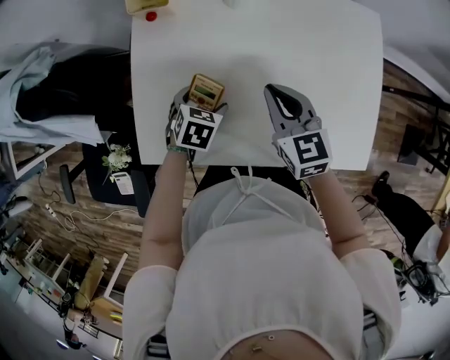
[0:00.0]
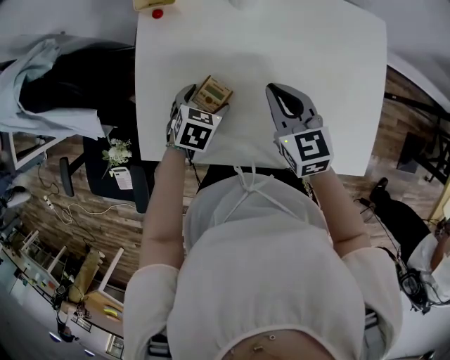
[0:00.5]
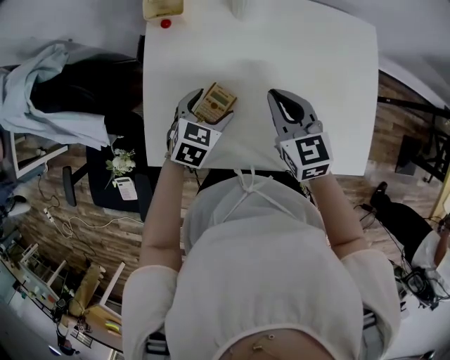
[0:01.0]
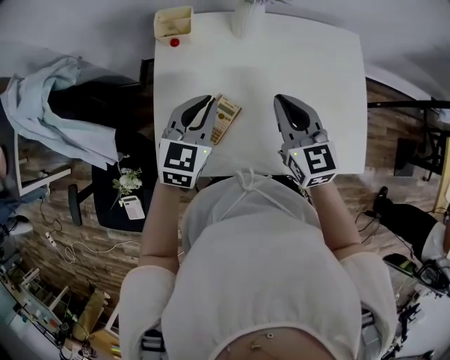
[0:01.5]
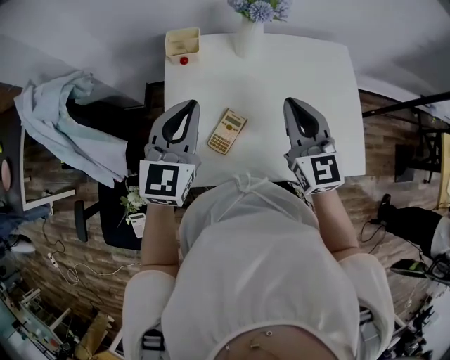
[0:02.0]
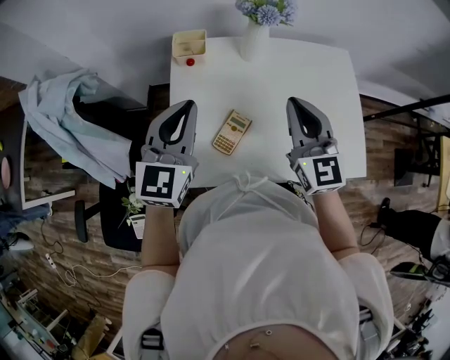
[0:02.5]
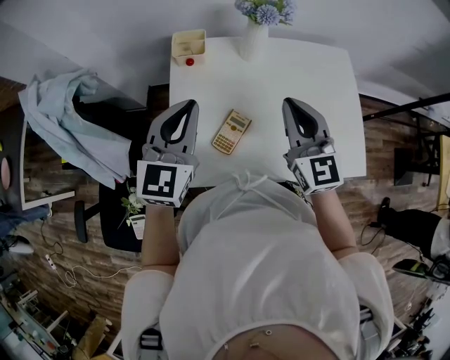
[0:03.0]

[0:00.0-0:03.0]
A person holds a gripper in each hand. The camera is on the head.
0:00.0 to 0:01.5: The left gripper travels upward by roughly 20 cm, tilts its fingers approximately 40 degrees upward, and closes its fingers, while the right gripper moves upward, about 10 cm.
0:01.5 to 0:03.0: The left gripper travels upward and to the left by roughly 15 cm, while the right gripper shifts approximately 10 cm upward.

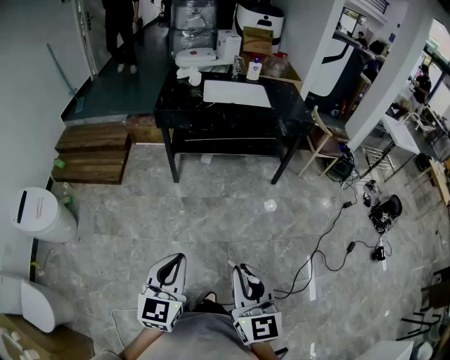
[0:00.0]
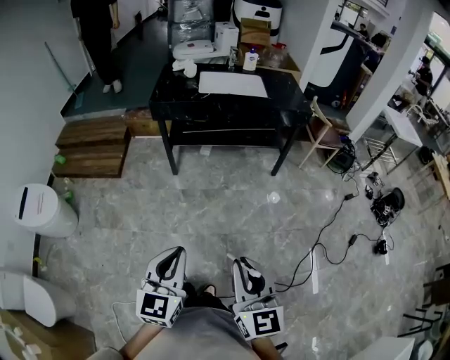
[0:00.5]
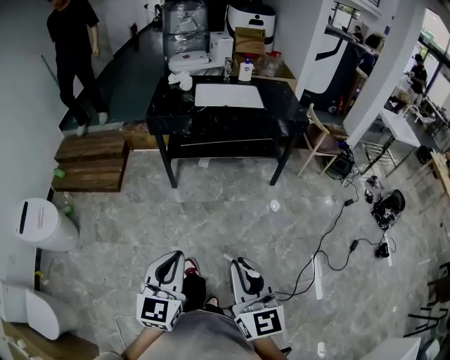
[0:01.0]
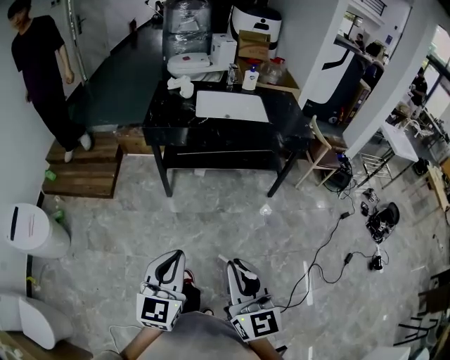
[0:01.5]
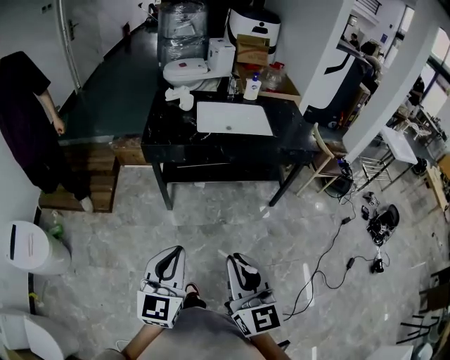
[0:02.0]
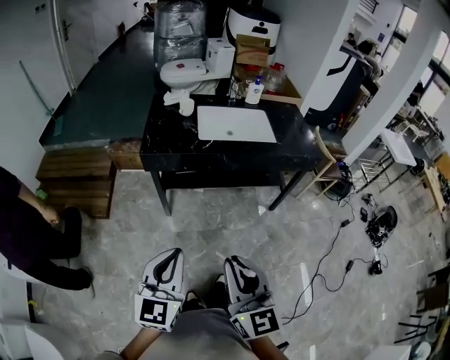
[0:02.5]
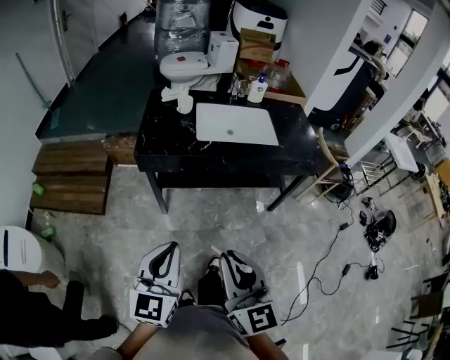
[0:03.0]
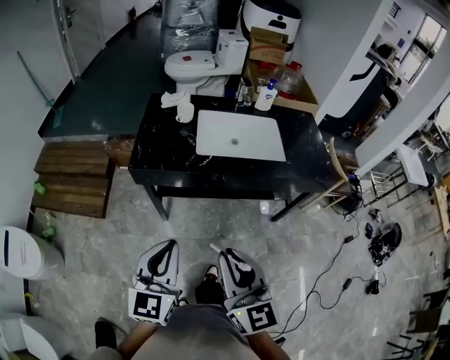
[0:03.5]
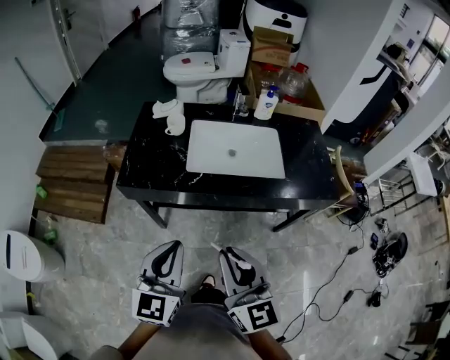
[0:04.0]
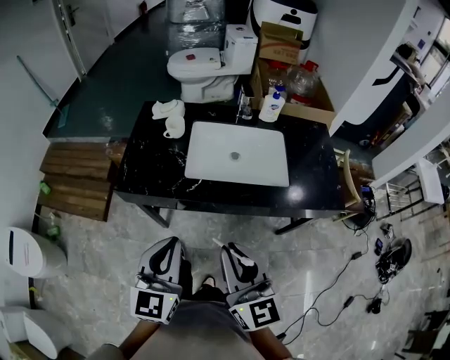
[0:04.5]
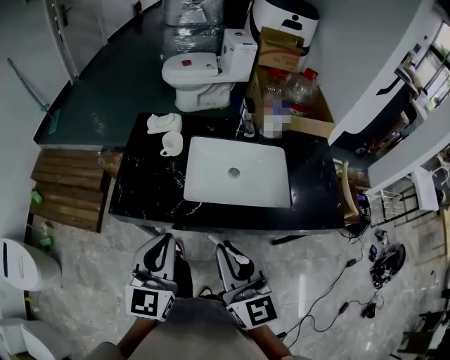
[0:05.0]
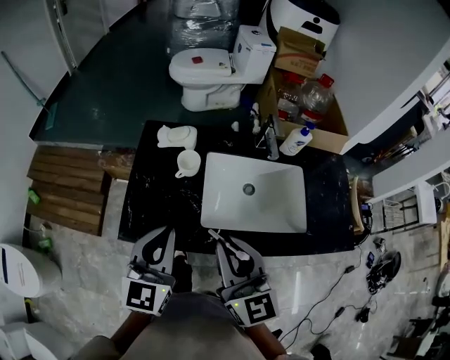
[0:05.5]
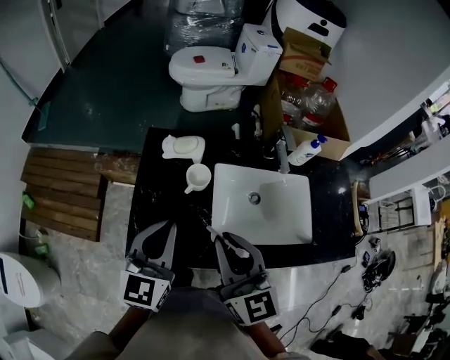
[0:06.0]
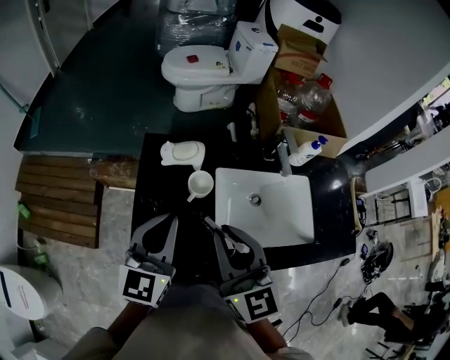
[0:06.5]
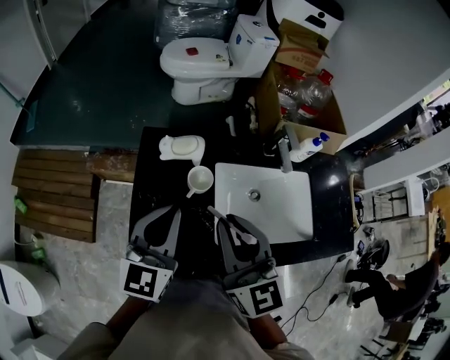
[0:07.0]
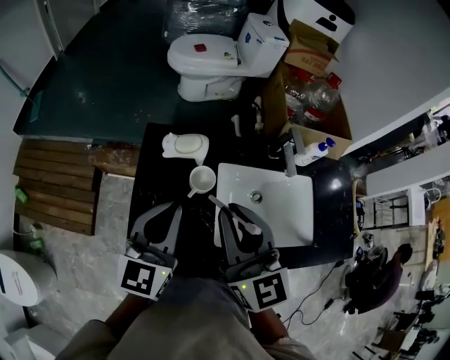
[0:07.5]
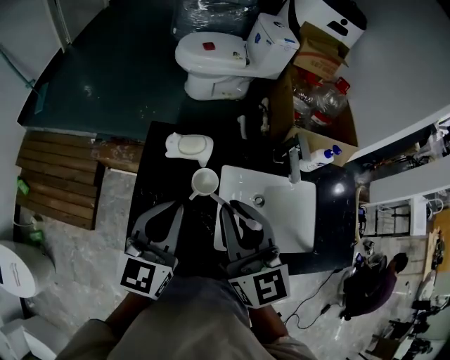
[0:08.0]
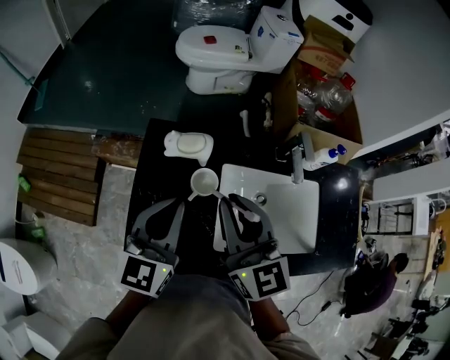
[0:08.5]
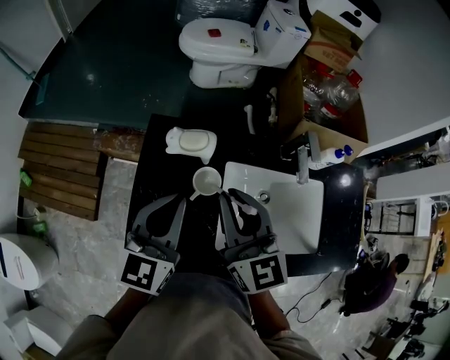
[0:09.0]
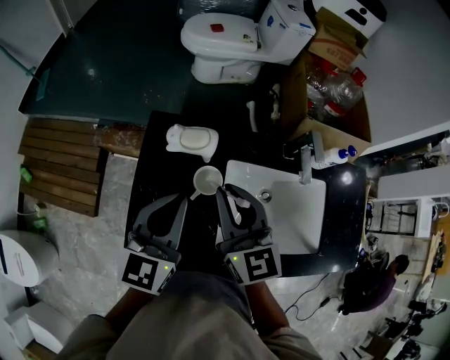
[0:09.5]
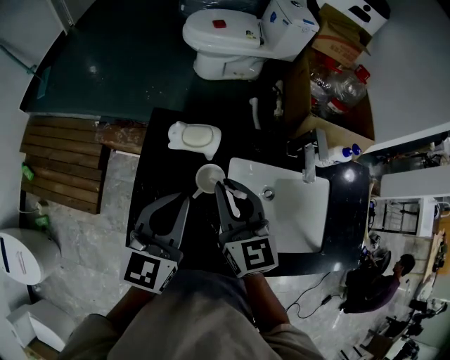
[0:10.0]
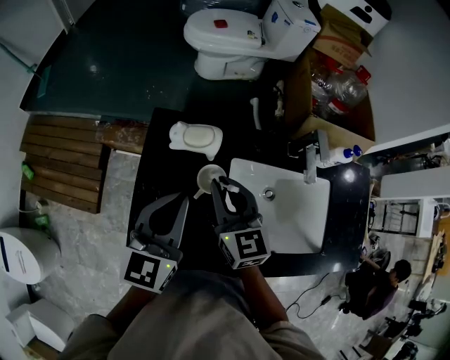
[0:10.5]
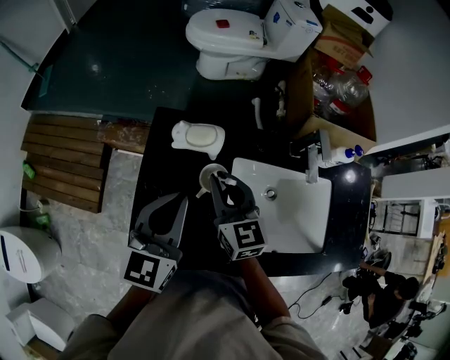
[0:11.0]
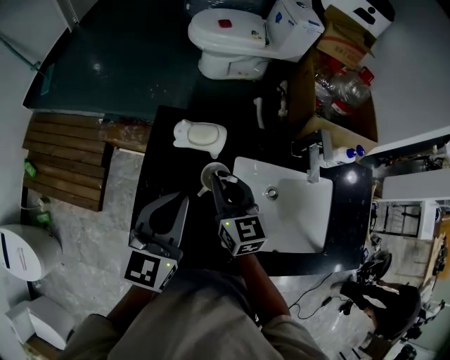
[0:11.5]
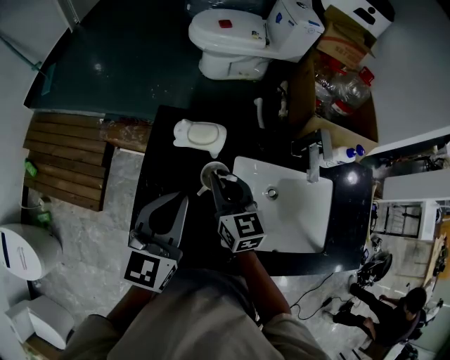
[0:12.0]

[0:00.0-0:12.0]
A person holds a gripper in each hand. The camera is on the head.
0:00.0 to 0:02.0: Both grippers travel together forward, about 25 cm.
0:02.0 to 0:04.0: The two grippers go roughly 30 cm forward.
0:04.0 to 0:06.0: Both grippers move forward, about 35 cm.
0:06.0 to 0:08.0: The two grippers go roughly 10 cm forward.
0:08.0 to 0:10.0: The right gripper heads downward and forward, covering some 10 cm.
0:10.0 to 0:12.0: The right gripper travels downward by some 10 cm.

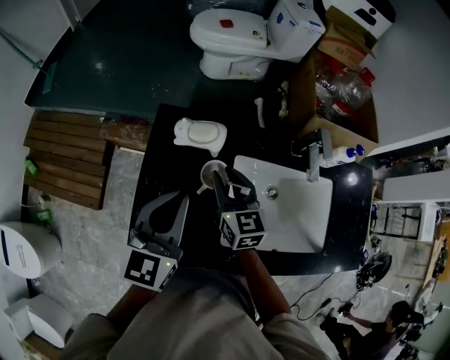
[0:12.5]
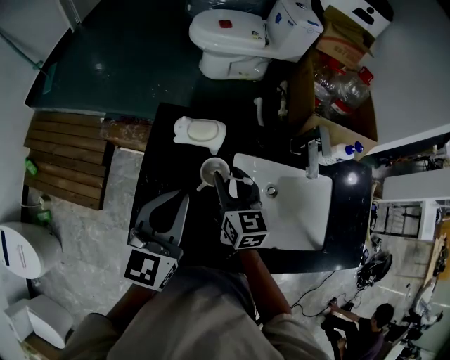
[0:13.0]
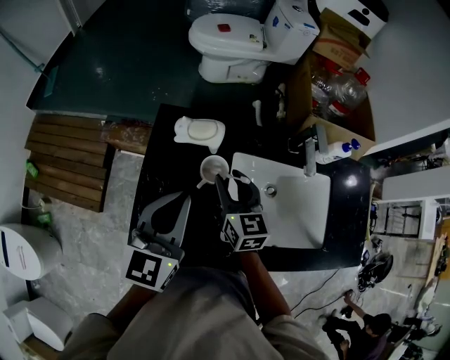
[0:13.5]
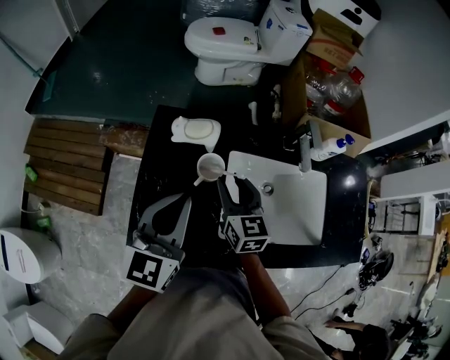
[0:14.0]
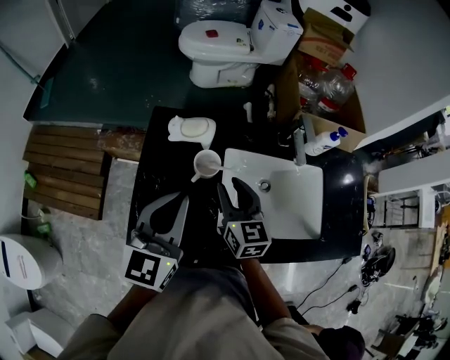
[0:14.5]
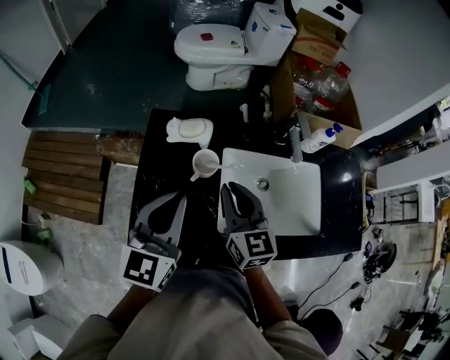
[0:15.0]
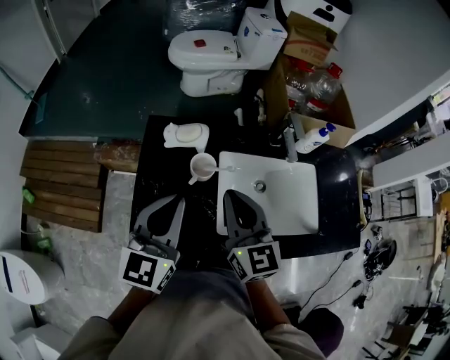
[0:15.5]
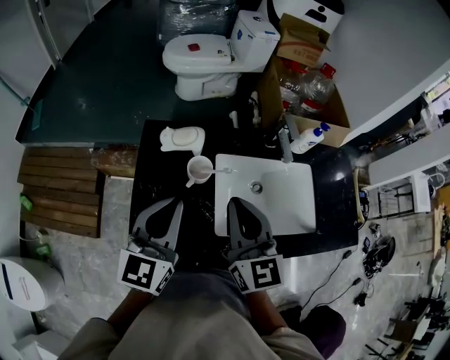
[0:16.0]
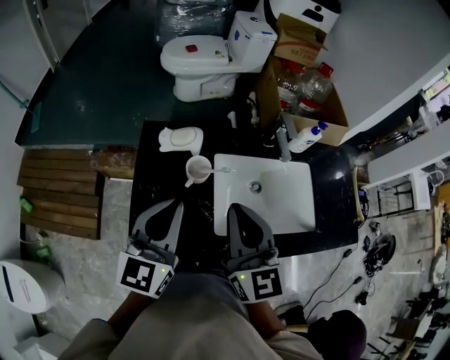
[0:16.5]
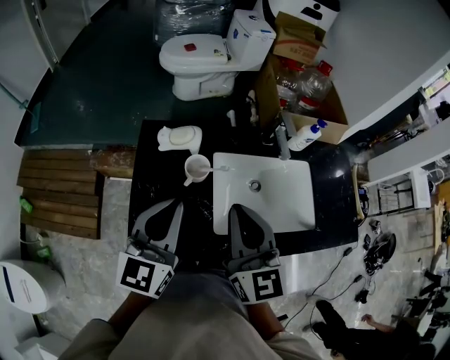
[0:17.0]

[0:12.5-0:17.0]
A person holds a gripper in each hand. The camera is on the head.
0:12.5 to 0:14.5: The left gripper moves approximately 5 cm; the right gripper moves backward, roughly 5 cm.
0:14.5 to 0:17.0: The right gripper moves upward and backward, some 15 cm, and closes up.

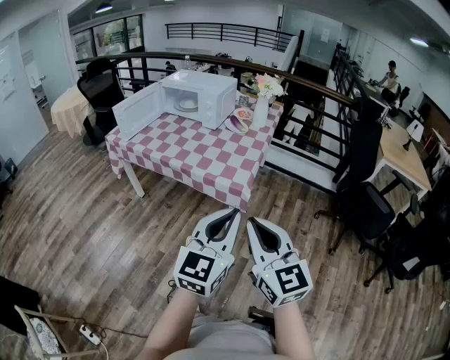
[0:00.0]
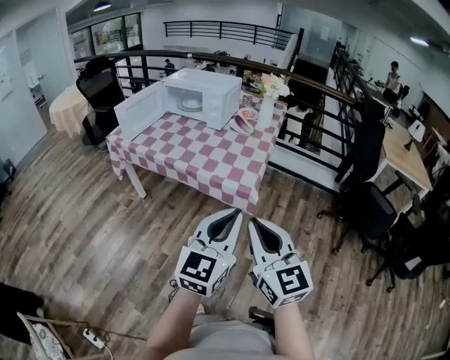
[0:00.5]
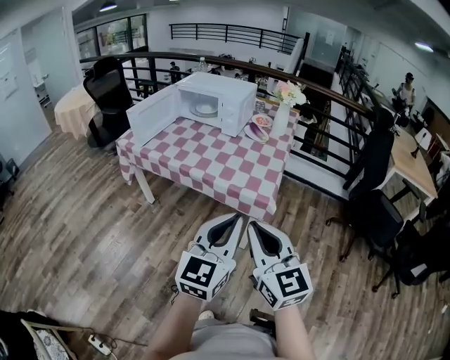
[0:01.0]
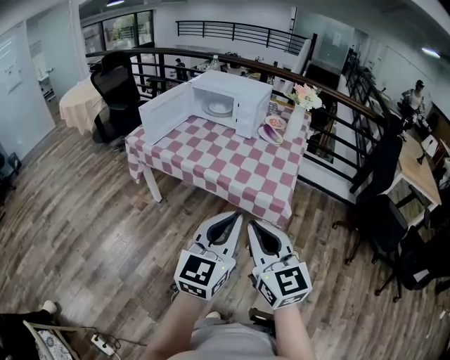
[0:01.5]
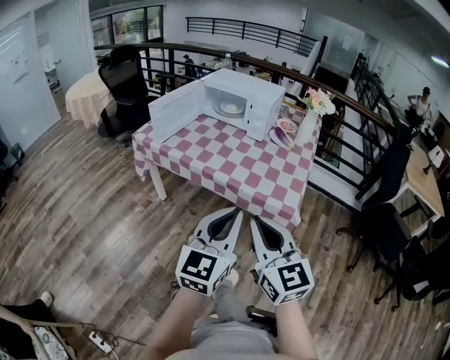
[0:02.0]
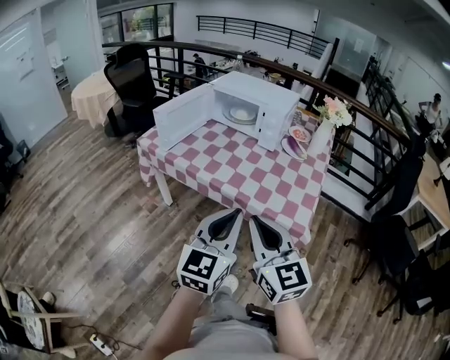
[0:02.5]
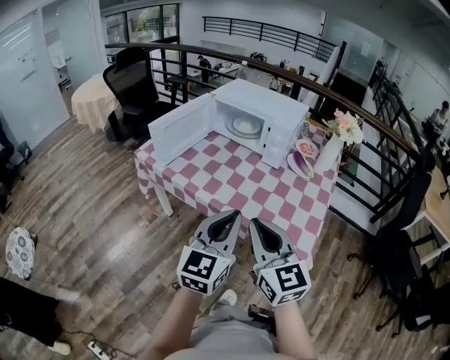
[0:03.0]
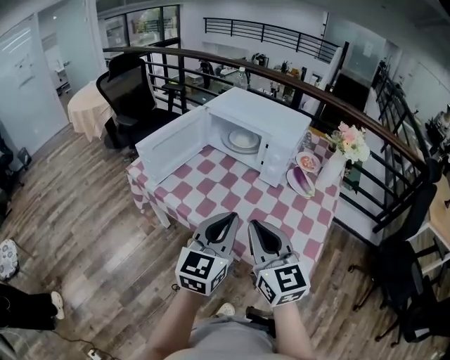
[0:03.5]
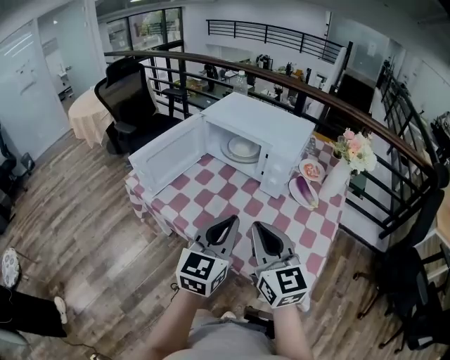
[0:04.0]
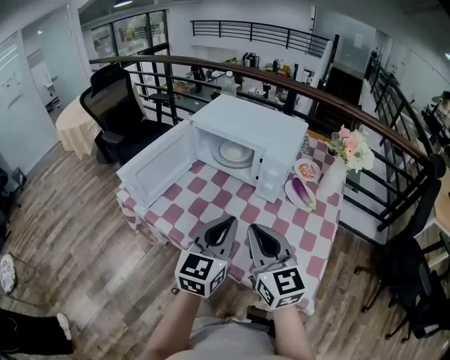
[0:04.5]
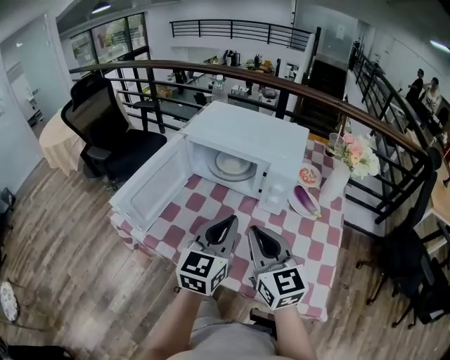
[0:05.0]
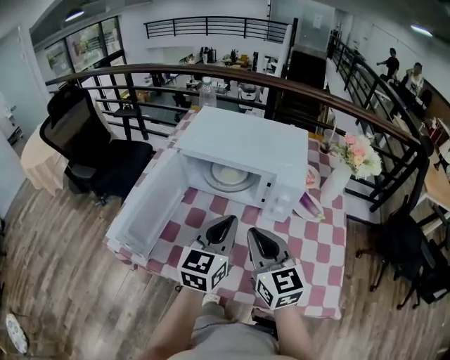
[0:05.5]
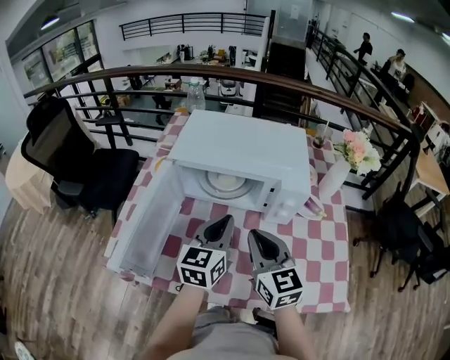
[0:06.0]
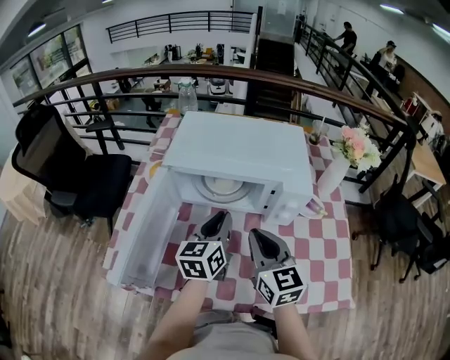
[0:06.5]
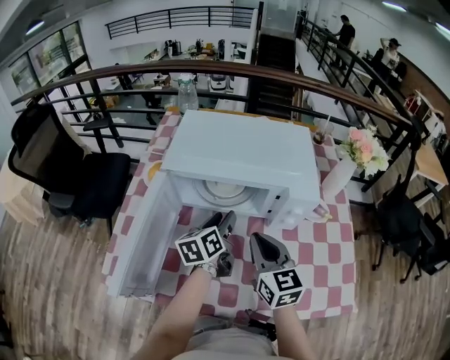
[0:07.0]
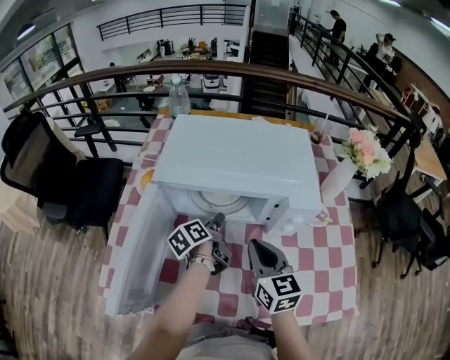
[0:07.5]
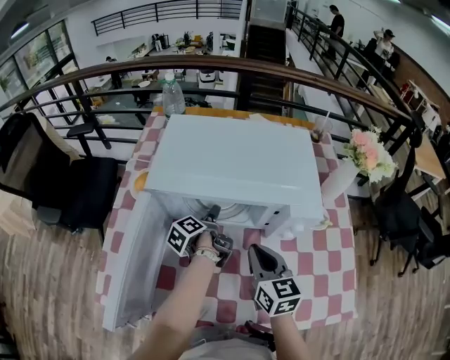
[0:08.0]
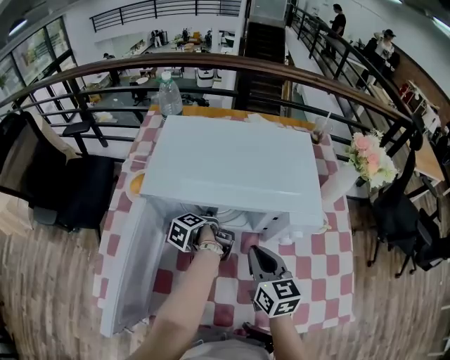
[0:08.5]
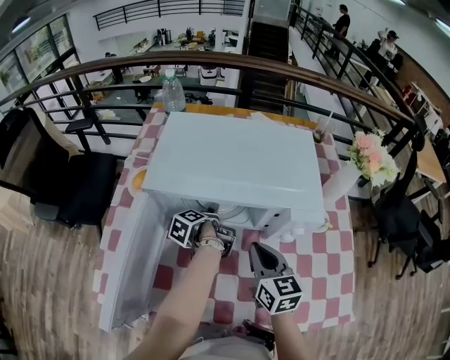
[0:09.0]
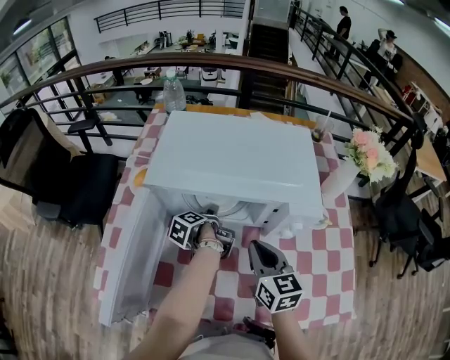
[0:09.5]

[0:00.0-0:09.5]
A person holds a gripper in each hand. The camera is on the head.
0:00.0 to 0:02.0: The grippers both shift to the left and forward by roughly 25 cm.
0:02.0 to 0:04.0: The grippers both shift forward by roughly 35 cm.
0:04.0 to 0:05.5: The right gripper is displaced forward and to the left by about 20 cm. The left gripper is displaced forward by roughly 20 cm.
0:05.5 to 0:07.5: The left gripper heads downward, forward and to the left, covering about 30 cm, rotates around the line of its fingers by approximately 60 degrees, counterclockwise from behind, and opens up; the right gripper goes approximately 15 cm forward and downward.
0:07.5 to 0:09.5: The left gripper moves downward, approximately 5 cm, and swivels about 30 degrees.
